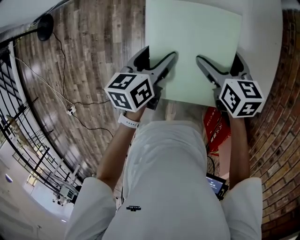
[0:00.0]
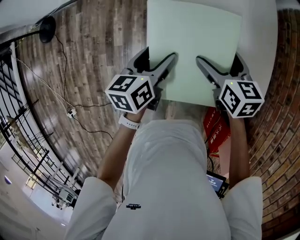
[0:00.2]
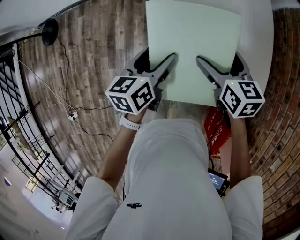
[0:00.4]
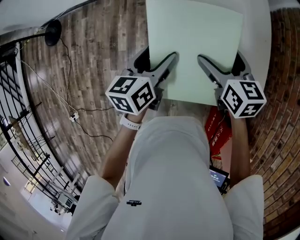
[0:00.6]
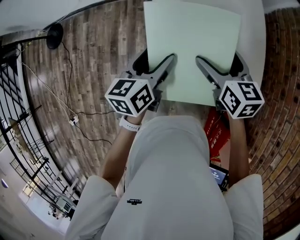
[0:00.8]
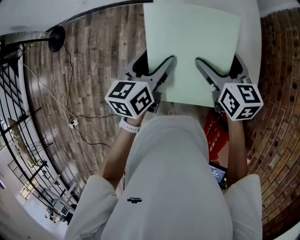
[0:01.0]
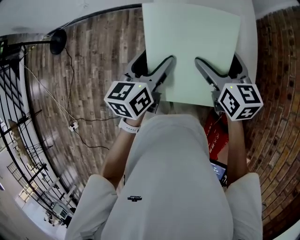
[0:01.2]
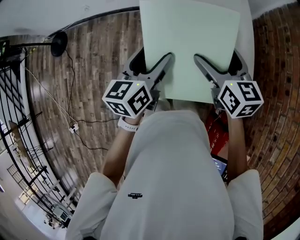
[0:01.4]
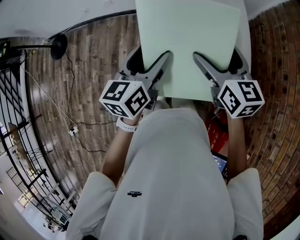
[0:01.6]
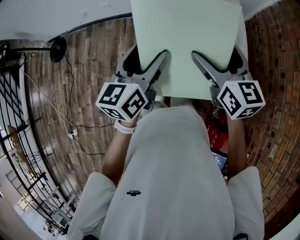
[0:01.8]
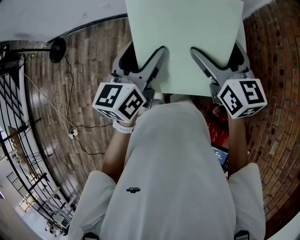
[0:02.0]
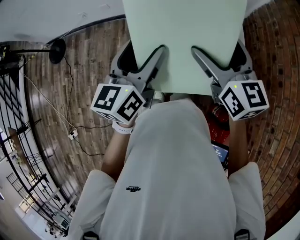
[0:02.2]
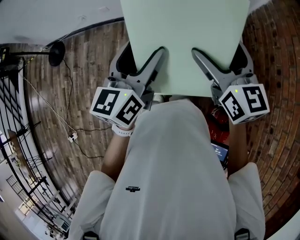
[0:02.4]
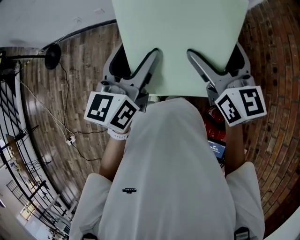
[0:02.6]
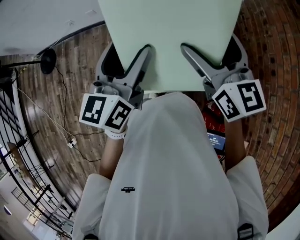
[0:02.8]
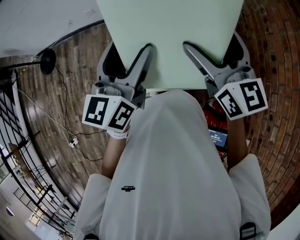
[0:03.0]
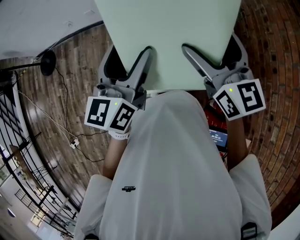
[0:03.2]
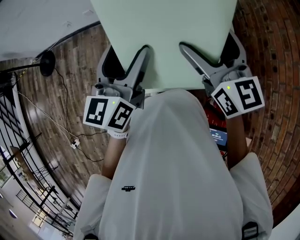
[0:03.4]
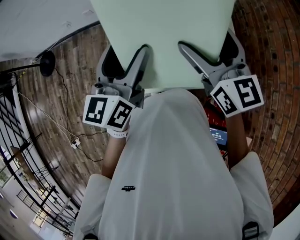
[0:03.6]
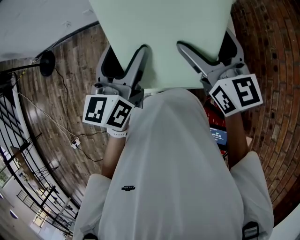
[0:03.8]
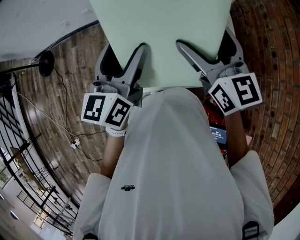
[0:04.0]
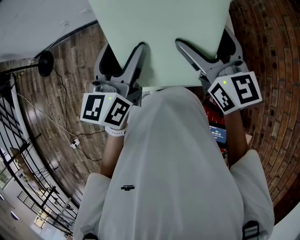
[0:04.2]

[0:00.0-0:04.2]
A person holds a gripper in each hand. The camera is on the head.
0:00.0 to 0:01.4: The two grippers go about 20 cm upward. The right gripper rotates roughly 20 degrees. The left gripper changes its angle by roughly 20 degrees.
0:01.4 to 0:02.8: Both grippers travel together upward, about 15 cm.
0:02.8 to 0:04.2: The grippers move only a little.

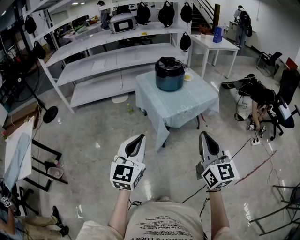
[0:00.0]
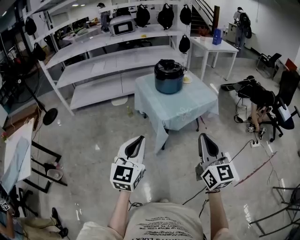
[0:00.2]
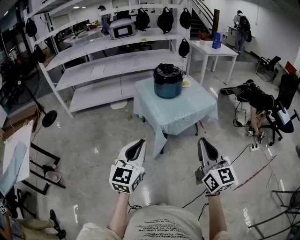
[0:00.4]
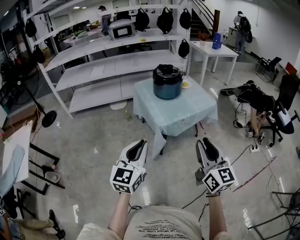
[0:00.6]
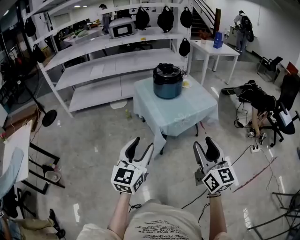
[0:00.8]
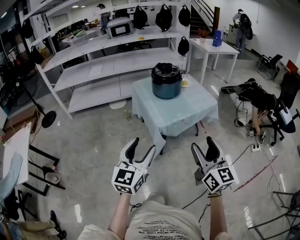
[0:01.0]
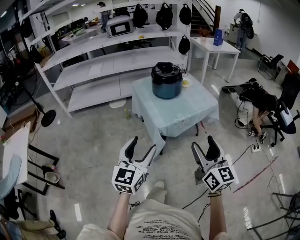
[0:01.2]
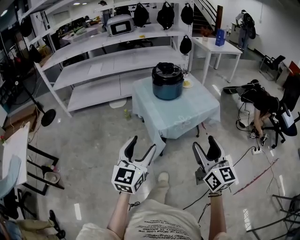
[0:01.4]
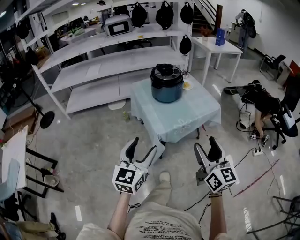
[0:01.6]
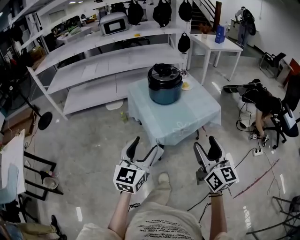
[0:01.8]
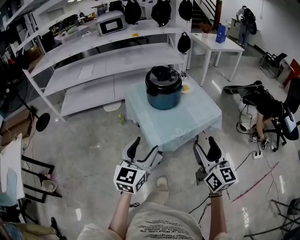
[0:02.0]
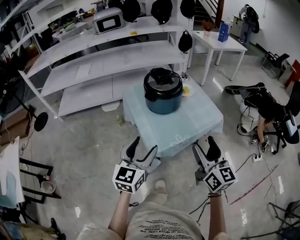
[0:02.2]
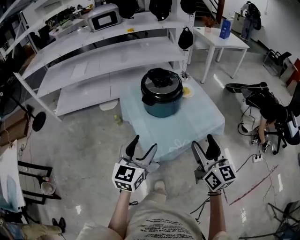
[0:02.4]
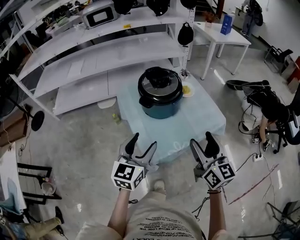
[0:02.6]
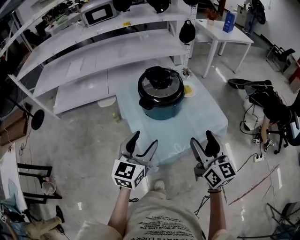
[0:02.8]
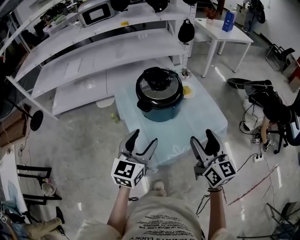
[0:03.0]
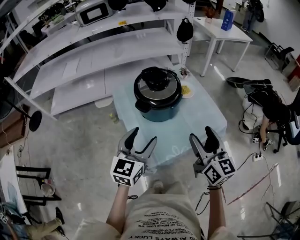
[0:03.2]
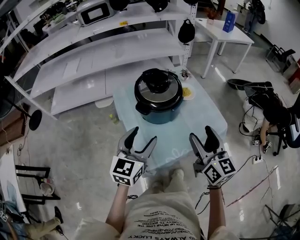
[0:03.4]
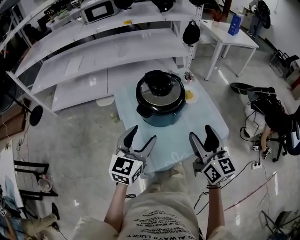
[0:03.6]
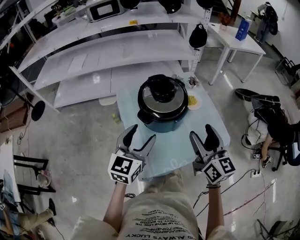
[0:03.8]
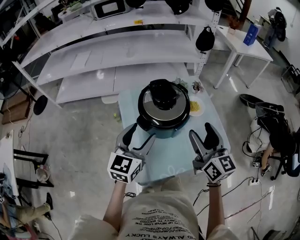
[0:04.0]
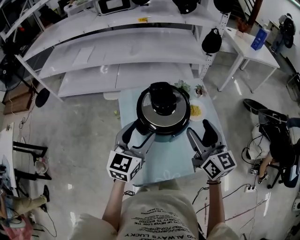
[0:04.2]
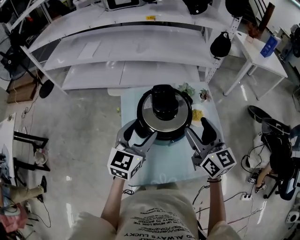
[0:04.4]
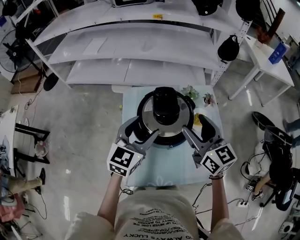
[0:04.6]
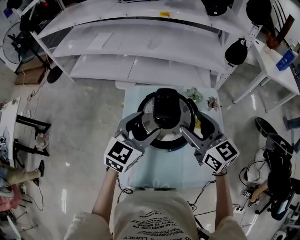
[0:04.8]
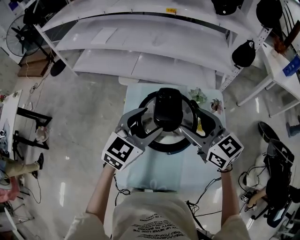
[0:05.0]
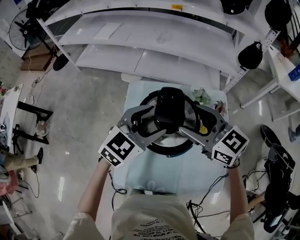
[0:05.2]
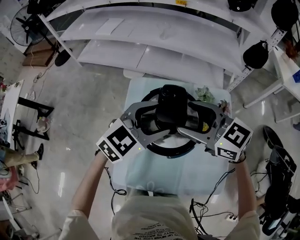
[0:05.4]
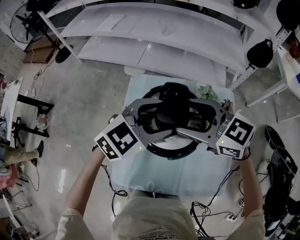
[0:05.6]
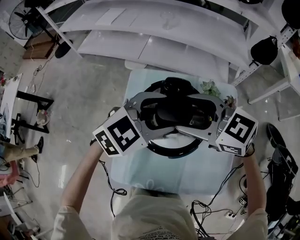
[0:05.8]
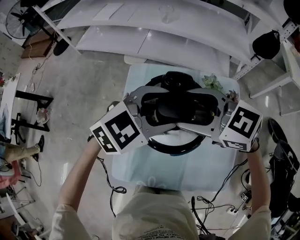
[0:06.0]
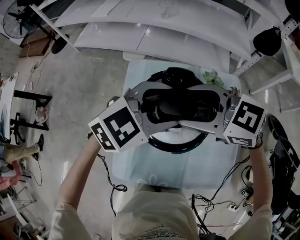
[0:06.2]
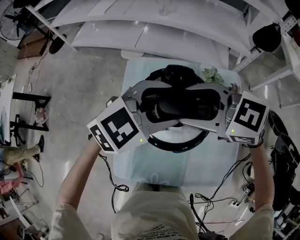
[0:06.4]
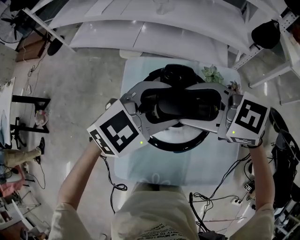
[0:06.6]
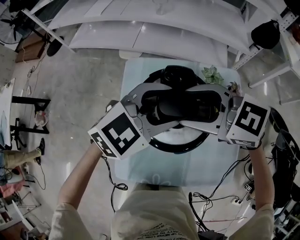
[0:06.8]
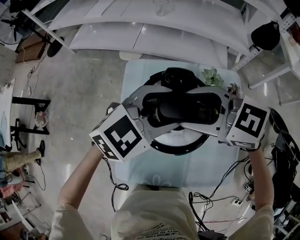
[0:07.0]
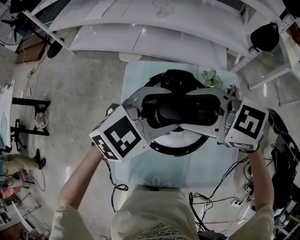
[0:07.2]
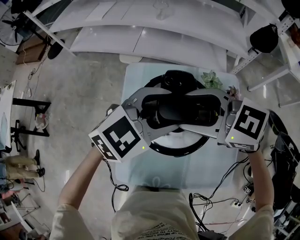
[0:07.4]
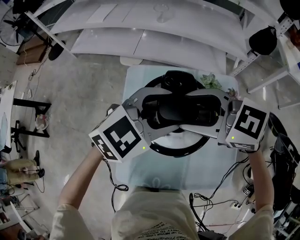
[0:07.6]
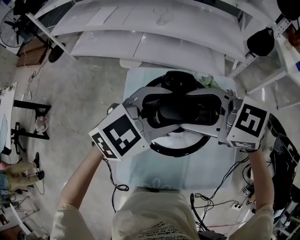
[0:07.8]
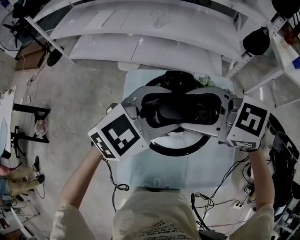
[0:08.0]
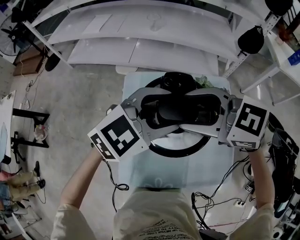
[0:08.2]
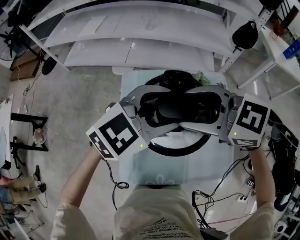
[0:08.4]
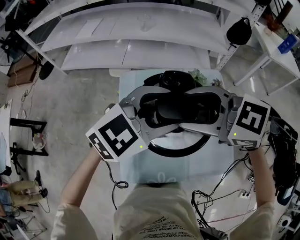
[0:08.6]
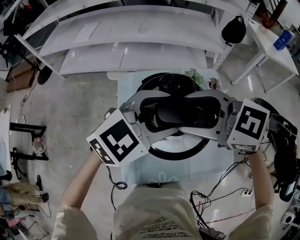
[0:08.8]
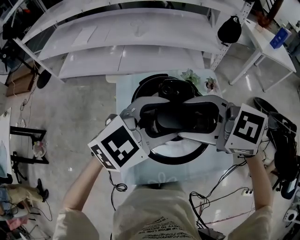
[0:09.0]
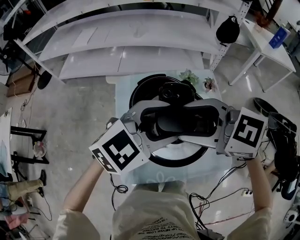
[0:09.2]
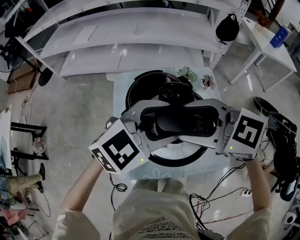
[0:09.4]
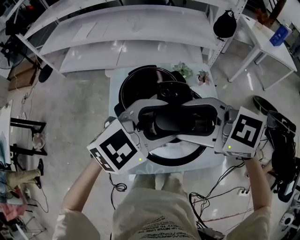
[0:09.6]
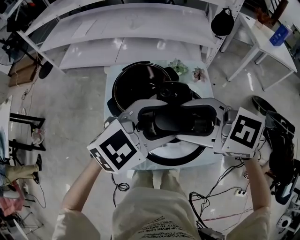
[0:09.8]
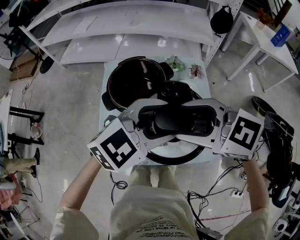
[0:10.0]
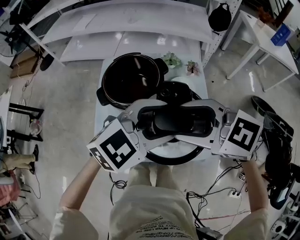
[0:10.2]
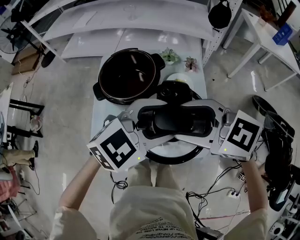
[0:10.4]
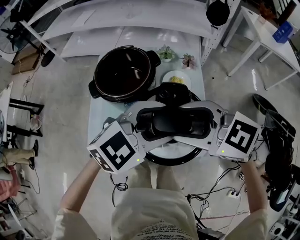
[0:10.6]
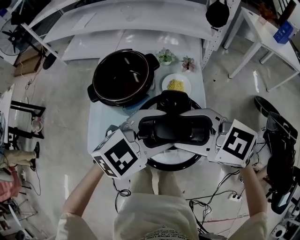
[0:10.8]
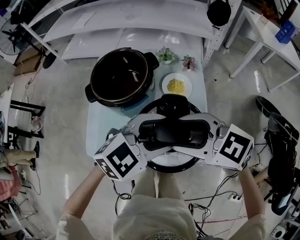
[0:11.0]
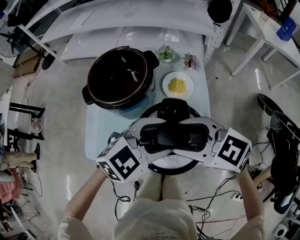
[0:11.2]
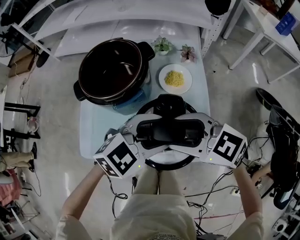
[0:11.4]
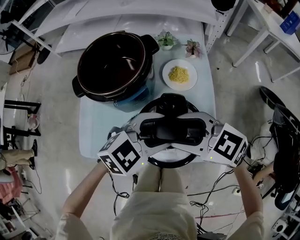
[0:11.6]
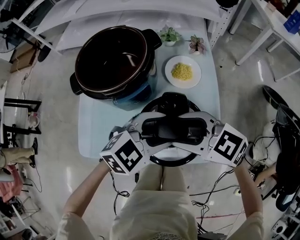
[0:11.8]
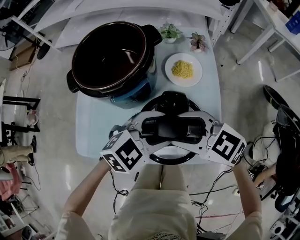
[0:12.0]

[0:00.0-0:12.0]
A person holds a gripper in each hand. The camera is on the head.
0:00.0 to 0:01.6: Both grippers travel together forward, roughly 10 cm. The right gripper opens up. The left gripper opens its fingers.
0:01.6 to 0:03.0: The two grippers go roughly 30 cm forward.
0:03.0 to 0:04.4: The two grippers go roughly 20 cm forward. The right gripper swivels approximately 20 degrees.
0:04.4 to 0:06.0: The left gripper changes place by roughly 10 cm, and turns by about 30 degrees. The right gripper changes place by roughly 15 cm, and swivels about 60 degrees.
0:06.0 to 0:07.6: There are only small adjustments of the grippers.
0:07.6 to 0:09.0: The left gripper changes place by some 10 cm. Meanwhile the right gripper shifts by roughly 10 cm.
0:09.0 to 0:10.4: The right gripper shifts by approximately 20 cm. The left gripper ends up approximately 20 cm from where it was.
0:10.4 to 0:12.0: The two grippers go about 20 cm downward.

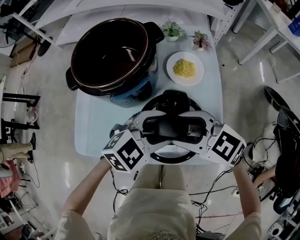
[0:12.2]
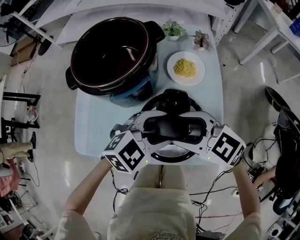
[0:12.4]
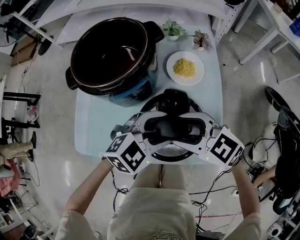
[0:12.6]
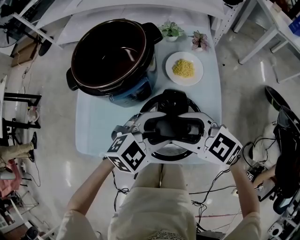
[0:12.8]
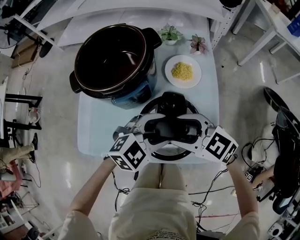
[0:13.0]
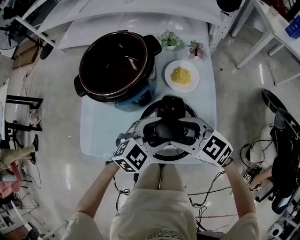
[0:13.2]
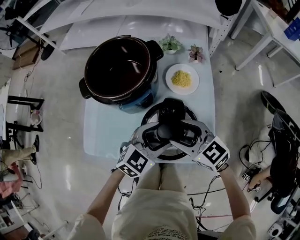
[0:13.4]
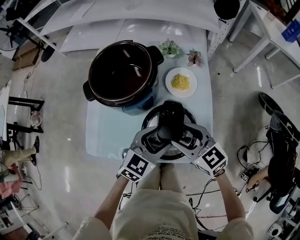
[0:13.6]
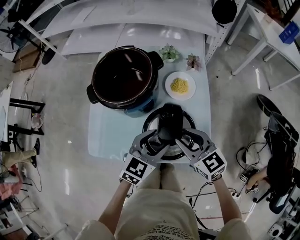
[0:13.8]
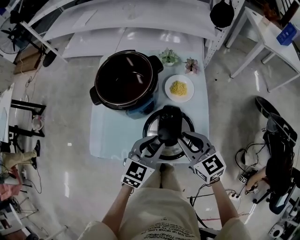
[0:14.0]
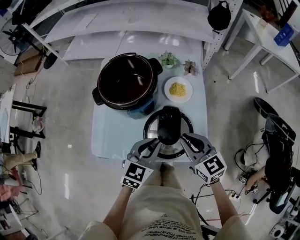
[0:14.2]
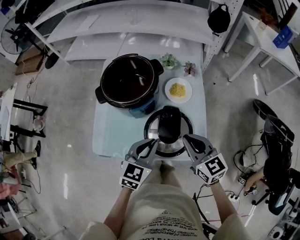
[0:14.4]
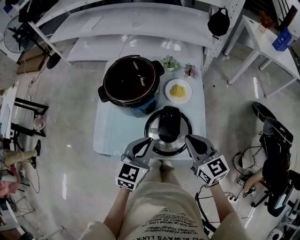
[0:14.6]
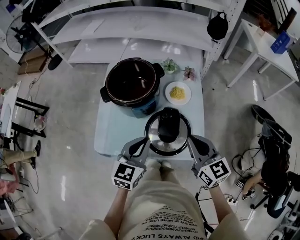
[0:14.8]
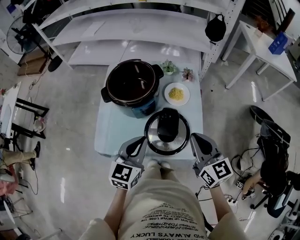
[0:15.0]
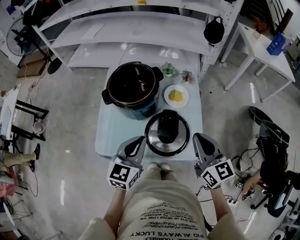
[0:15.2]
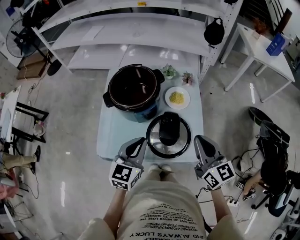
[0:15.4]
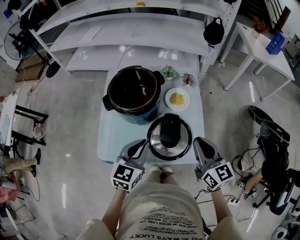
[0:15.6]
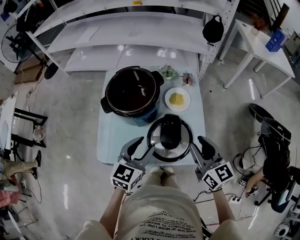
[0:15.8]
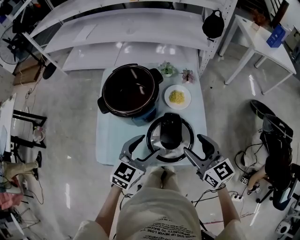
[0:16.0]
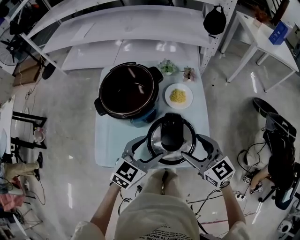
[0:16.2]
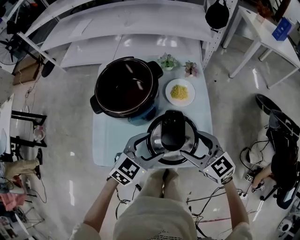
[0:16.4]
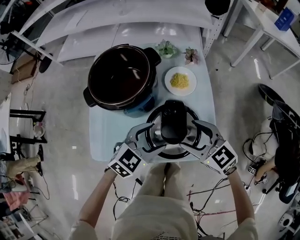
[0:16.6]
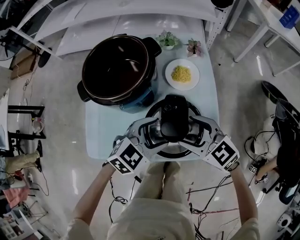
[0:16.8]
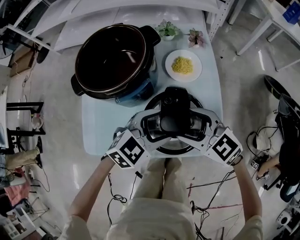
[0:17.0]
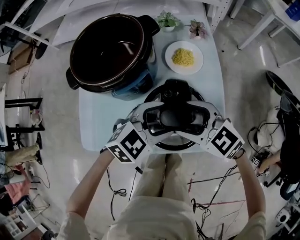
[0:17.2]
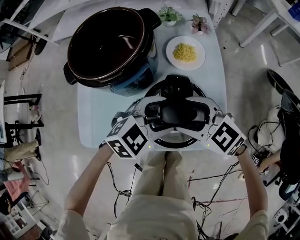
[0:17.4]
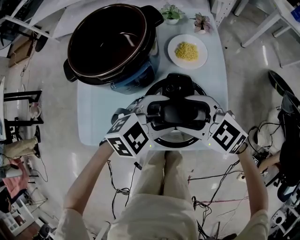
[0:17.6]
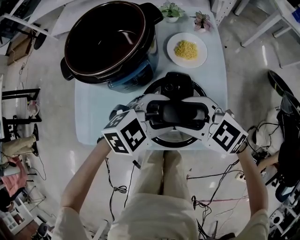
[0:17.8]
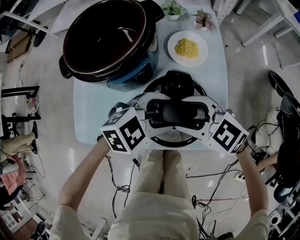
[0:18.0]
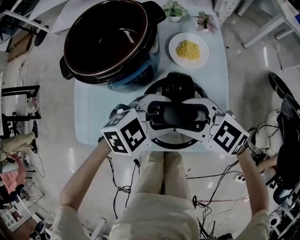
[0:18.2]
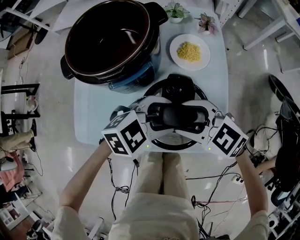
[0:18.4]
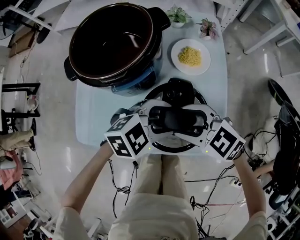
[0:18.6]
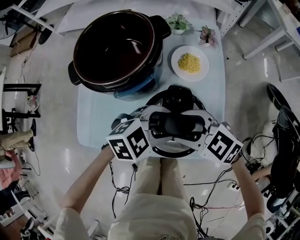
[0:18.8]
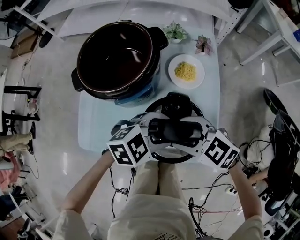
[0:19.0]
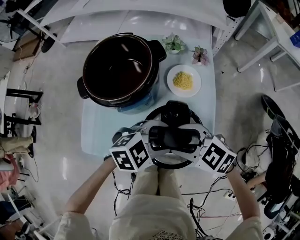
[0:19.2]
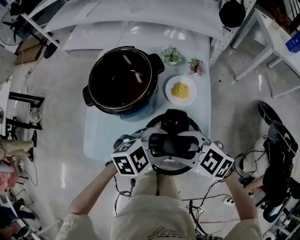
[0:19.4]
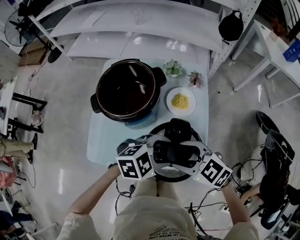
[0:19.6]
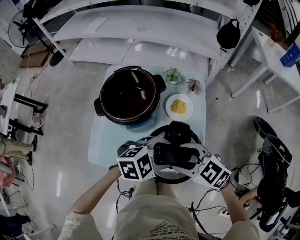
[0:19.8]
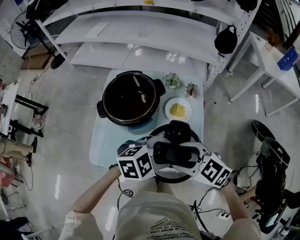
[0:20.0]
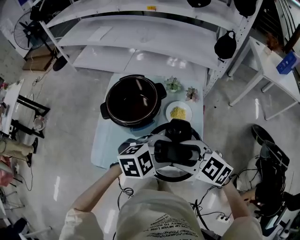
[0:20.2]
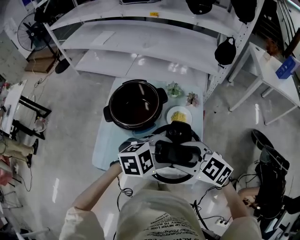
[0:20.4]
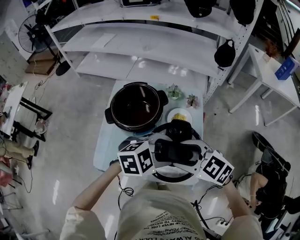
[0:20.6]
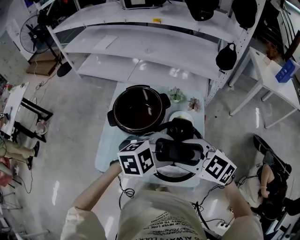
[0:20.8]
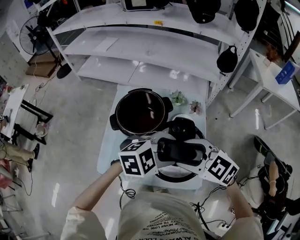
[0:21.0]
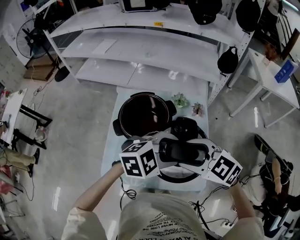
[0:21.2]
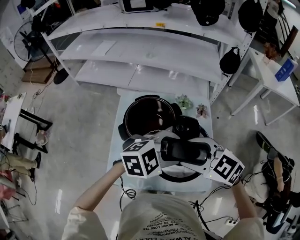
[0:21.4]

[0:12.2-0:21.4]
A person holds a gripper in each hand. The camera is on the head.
0:12.2 to 0:13.8: The left gripper rotates about 30 degrees. The right gripper changes its angle by approximately 30 degrees.
0:13.8 to 0:15.2: The right gripper heads upward and to the right, covering about 15 cm, swivels about 20 degrees, and closes its fingers. Meanwhile the left gripper moves upward and to the left, approximately 15 cm, and closes.
0:15.2 to 0:16.8: The left gripper shifts approximately 15 cm downward and to the right, swivels about 50 degrees, and opens its fingers; the right gripper moves downward and to the left, some 15 cm, rotates some 40 degrees, and opens.
0:16.8 to 0:18.4: The right gripper rotates some 20 degrees.
0:18.4 to 0:19.8: The two grippers go approximately 10 cm upward.
0:19.8 to 0:21.4: The grippers both shift upward by roughly 10 cm.
